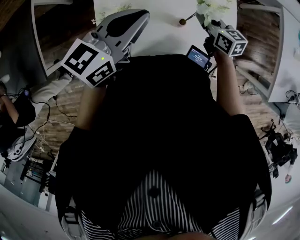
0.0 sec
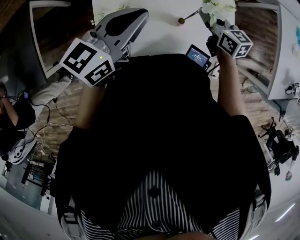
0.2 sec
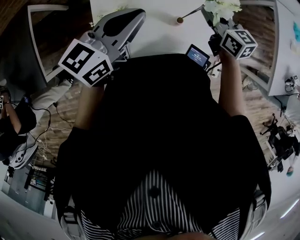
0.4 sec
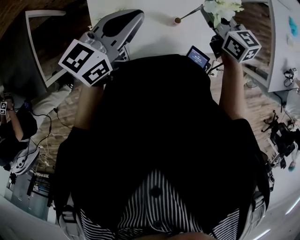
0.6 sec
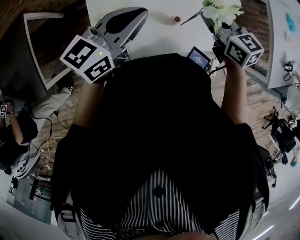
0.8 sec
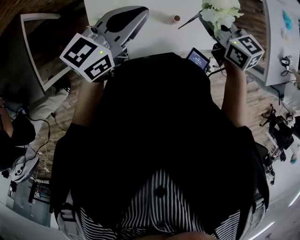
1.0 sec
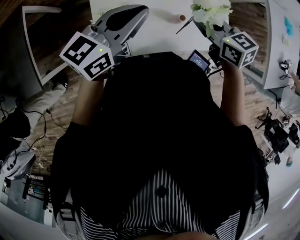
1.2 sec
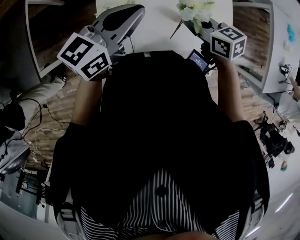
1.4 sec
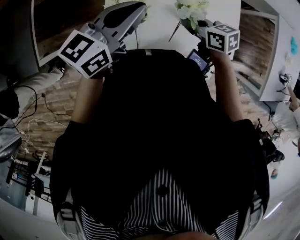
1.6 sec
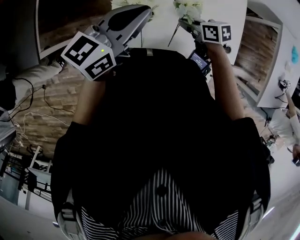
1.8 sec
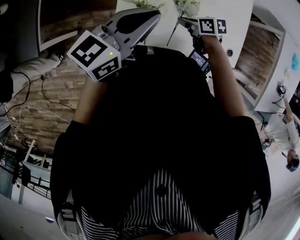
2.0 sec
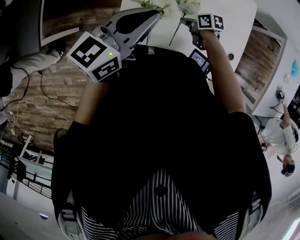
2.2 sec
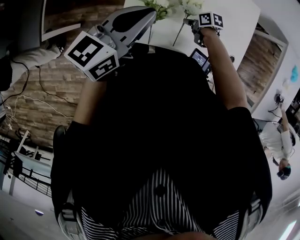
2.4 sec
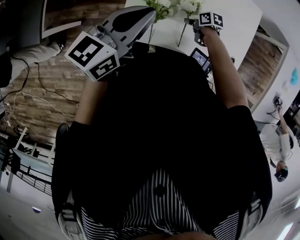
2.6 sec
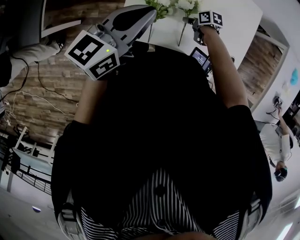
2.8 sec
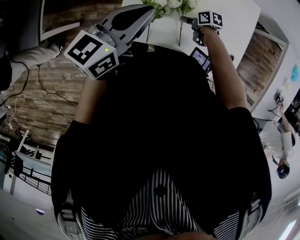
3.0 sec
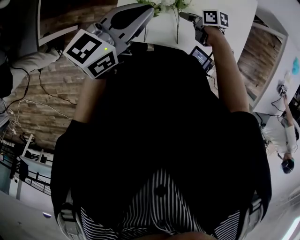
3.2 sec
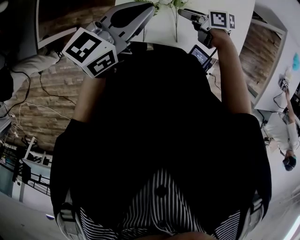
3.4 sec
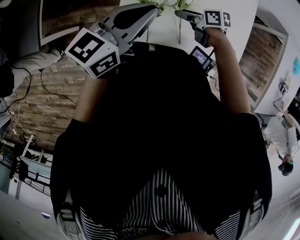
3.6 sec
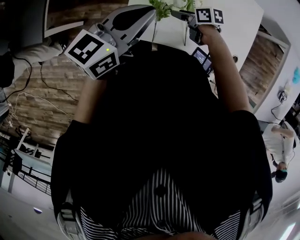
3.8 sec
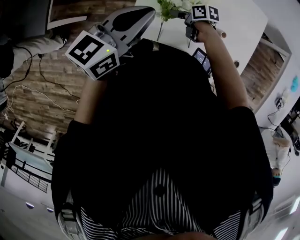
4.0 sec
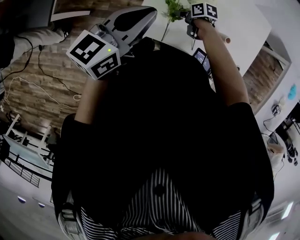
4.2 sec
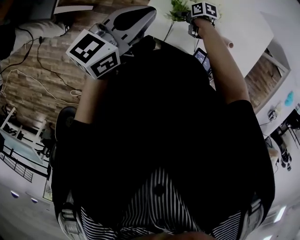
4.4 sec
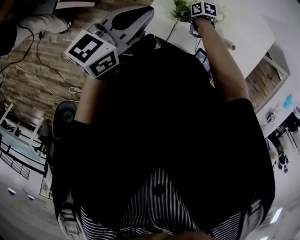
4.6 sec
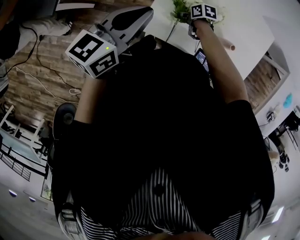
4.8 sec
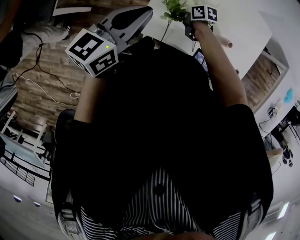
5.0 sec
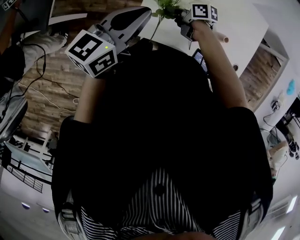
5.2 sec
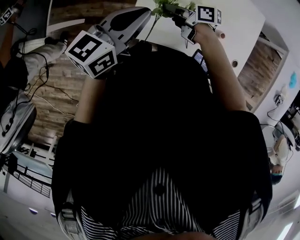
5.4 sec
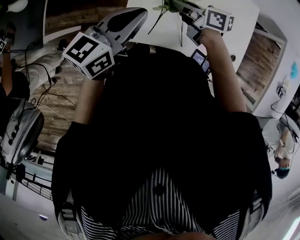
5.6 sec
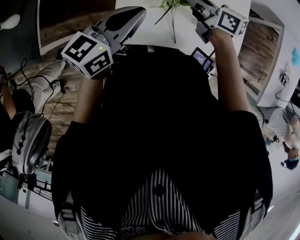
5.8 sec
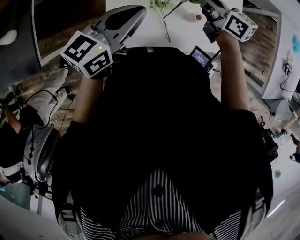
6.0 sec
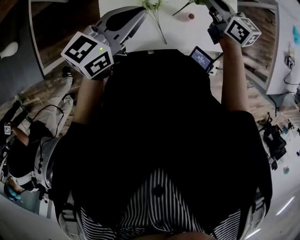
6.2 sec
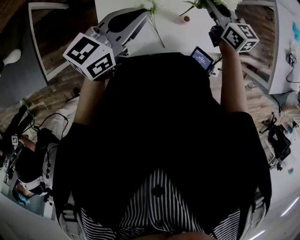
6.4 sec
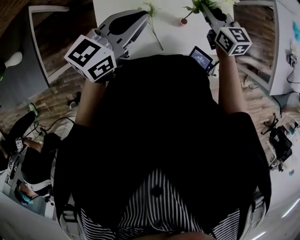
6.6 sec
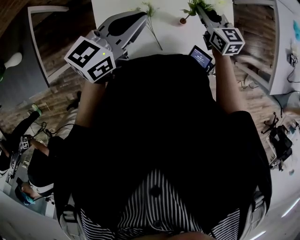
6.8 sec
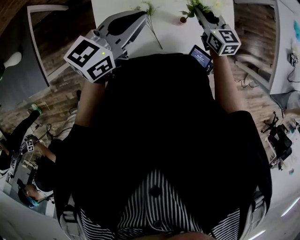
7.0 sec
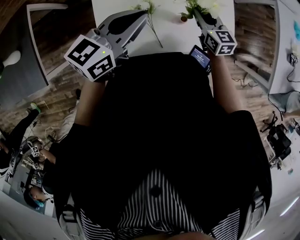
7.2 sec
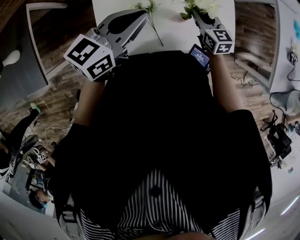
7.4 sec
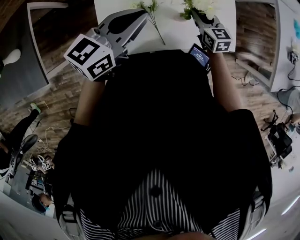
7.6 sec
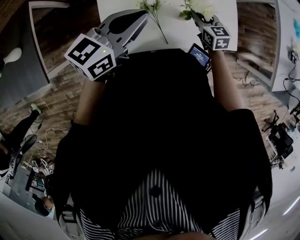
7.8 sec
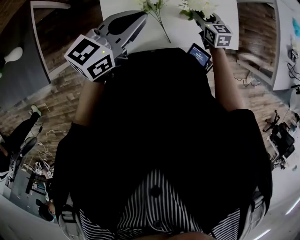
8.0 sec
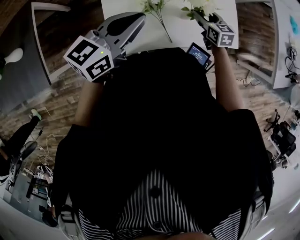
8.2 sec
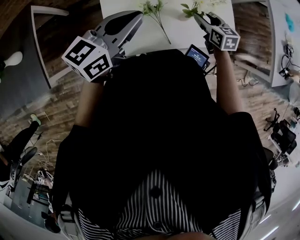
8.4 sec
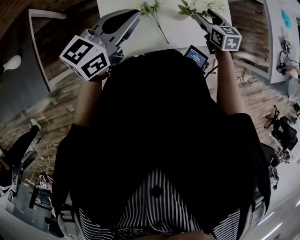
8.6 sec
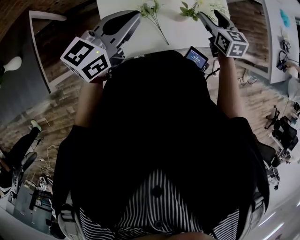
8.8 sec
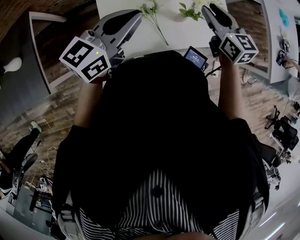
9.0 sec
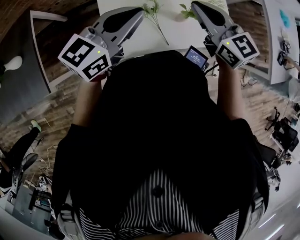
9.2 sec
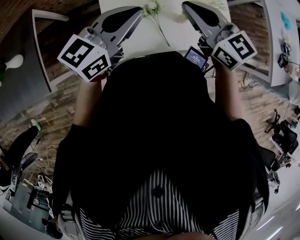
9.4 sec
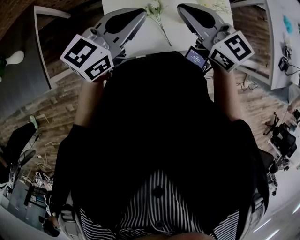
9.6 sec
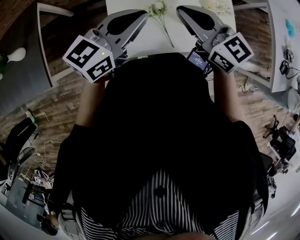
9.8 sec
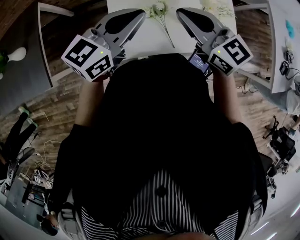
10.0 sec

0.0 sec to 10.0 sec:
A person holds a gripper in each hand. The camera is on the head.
0.0 sec to 1.4 sec: The left gripper is displaced to the left by some 10 cm. Meanwhile the right gripper is displaced to the left, backward and upward by some 15 cm.
1.4 sec to 2.8 sec: The right gripper goes about 25 cm downward, and changes its angle by some 40 degrees. The left gripper shifts by approximately 10 cm.
2.8 sec to 4.2 sec: The left gripper changes place by about 5 cm. Meanwhile the right gripper reaches about 15 cm upward, then returns, and opens up.
4.2 sec to 5.8 sec: The left gripper shifts by some 10 cm. Meanwhile the right gripper moves upward, some 25 cm, tips its fingers upward by roughly 30 degrees, and closes.
5.8 sec to 7.2 sec: The left gripper goes some 10 cm to the right, while the right gripper shifts roughly 15 cm to the right, and rotates roughly 40 degrees.
7.2 sec to 8.6 sec: The right gripper opens up.
8.6 sec to 10.0 sec: The right gripper goes roughly 25 cm upward, to the left and backward, swivels about 40 degrees, and closes its fingers.

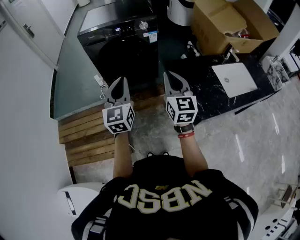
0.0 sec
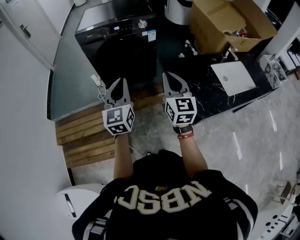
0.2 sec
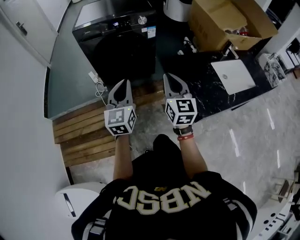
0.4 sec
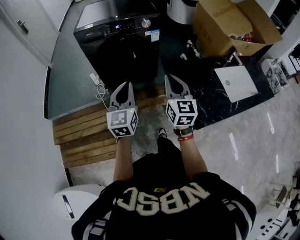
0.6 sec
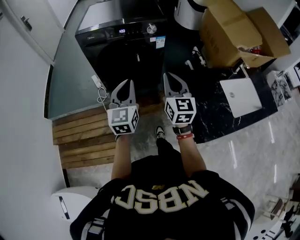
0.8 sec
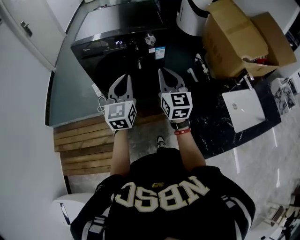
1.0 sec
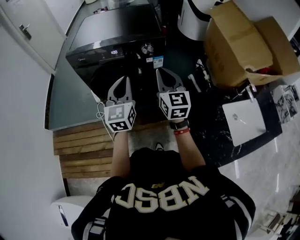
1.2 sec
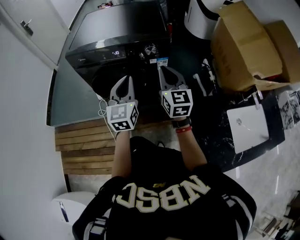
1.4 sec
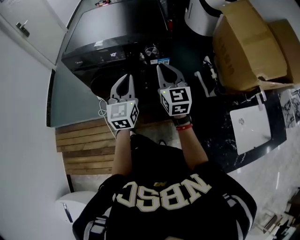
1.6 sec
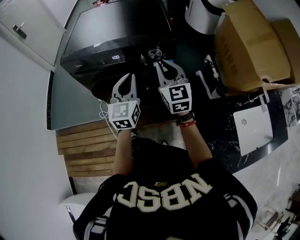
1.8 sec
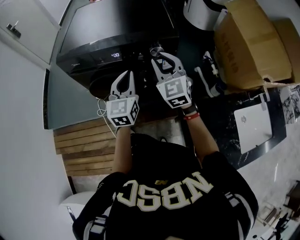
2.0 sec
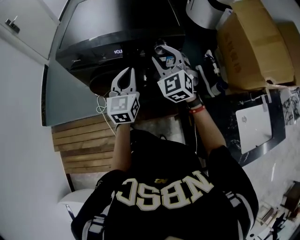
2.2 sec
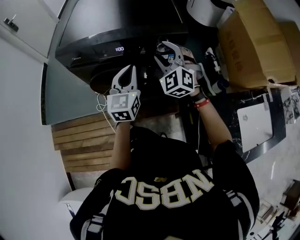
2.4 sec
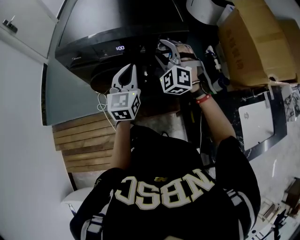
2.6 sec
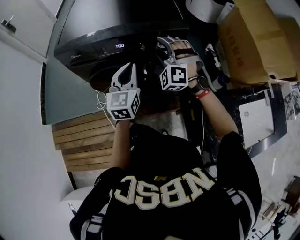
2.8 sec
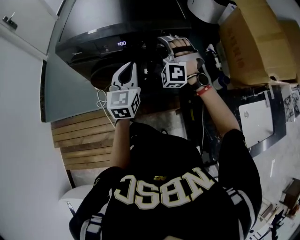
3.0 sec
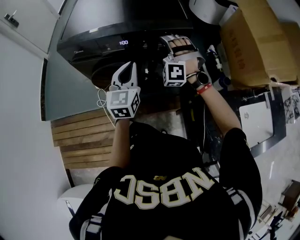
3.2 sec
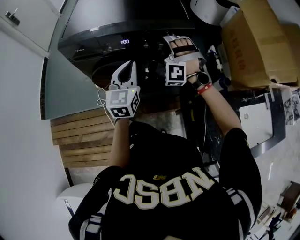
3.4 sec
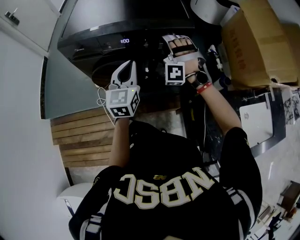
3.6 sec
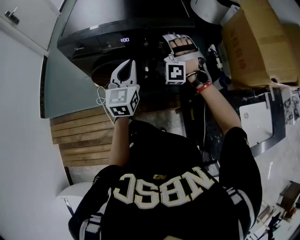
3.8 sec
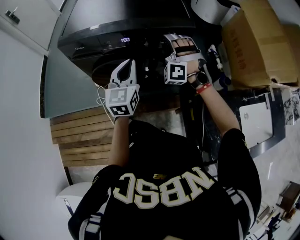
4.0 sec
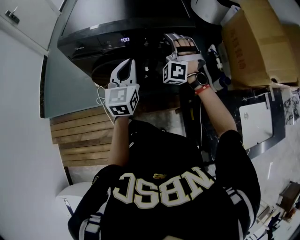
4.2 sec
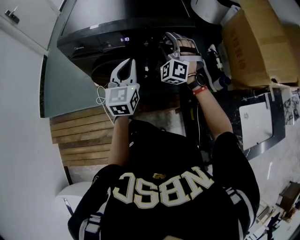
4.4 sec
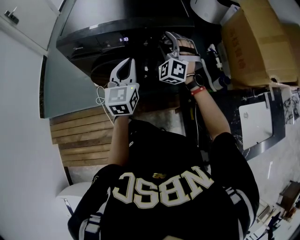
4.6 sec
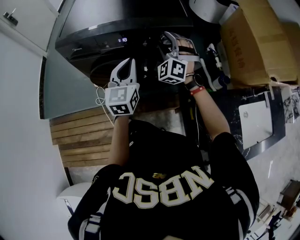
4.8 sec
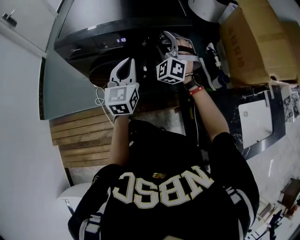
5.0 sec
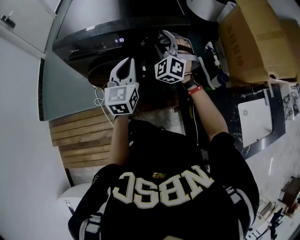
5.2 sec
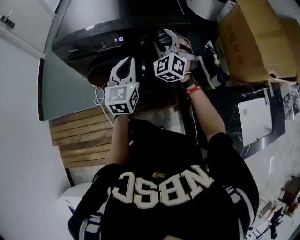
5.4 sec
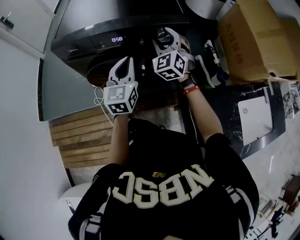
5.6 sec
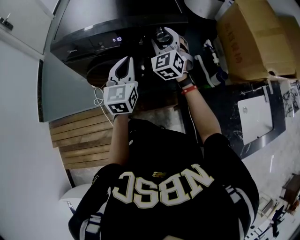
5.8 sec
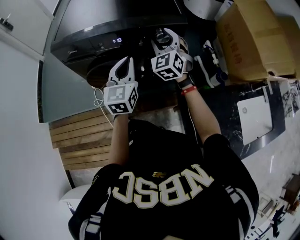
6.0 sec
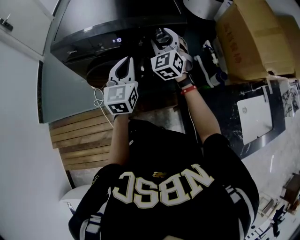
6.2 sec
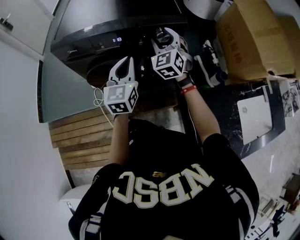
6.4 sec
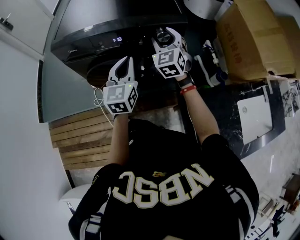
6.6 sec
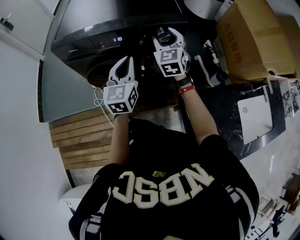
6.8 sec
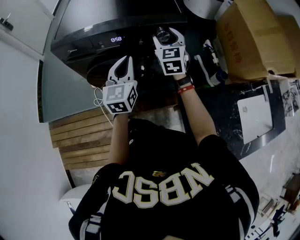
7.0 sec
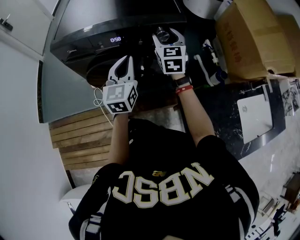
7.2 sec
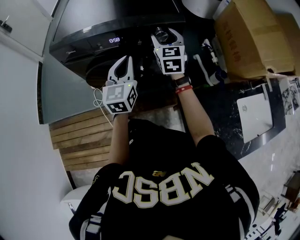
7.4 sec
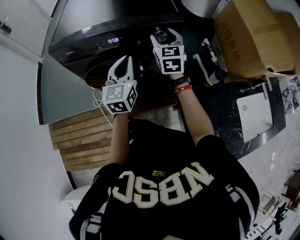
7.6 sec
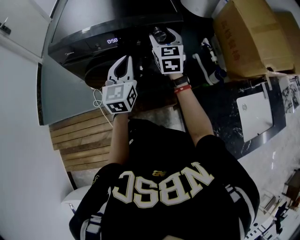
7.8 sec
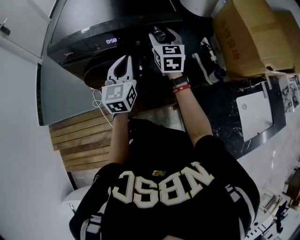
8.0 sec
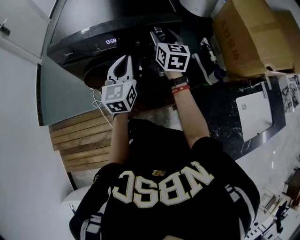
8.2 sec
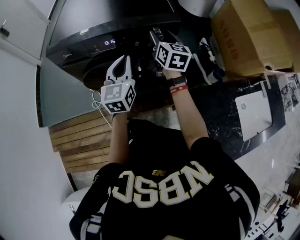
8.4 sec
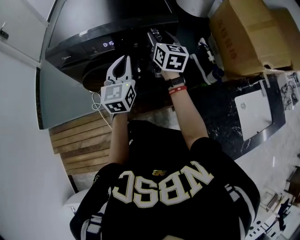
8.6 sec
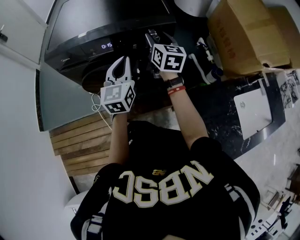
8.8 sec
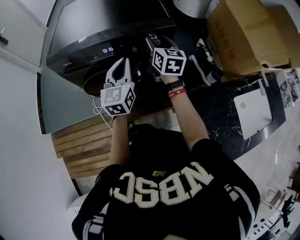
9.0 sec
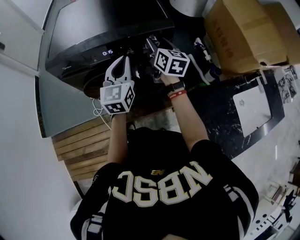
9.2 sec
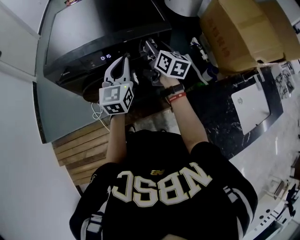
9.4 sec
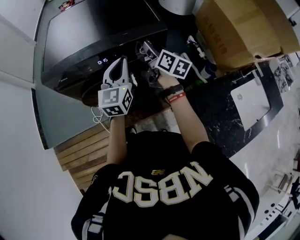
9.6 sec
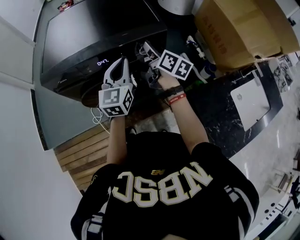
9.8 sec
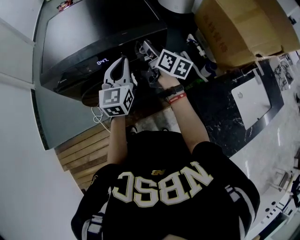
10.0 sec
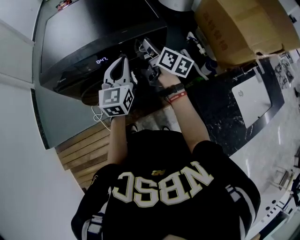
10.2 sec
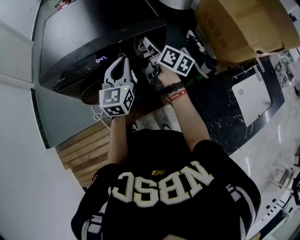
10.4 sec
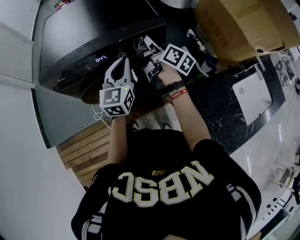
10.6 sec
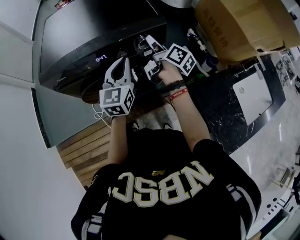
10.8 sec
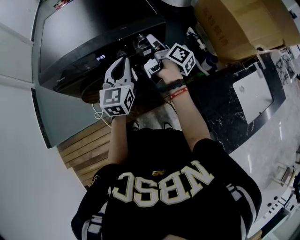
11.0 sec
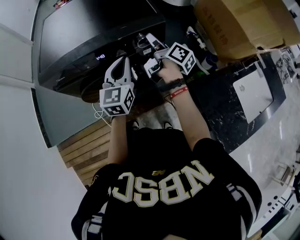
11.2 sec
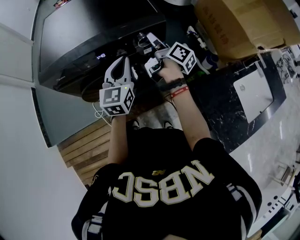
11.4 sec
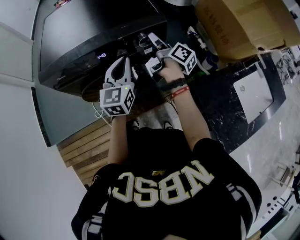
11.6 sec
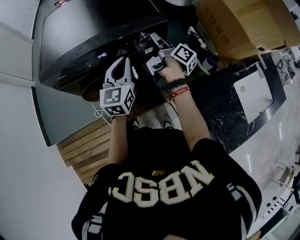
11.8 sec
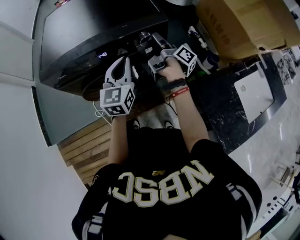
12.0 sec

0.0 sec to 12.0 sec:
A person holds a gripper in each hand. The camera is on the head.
0.0 sec to 1.6 sec: Both grippers move forward, roughly 40 cm.
1.6 sec to 3.0 sec: The left gripper goes about 10 cm forward and downward; the right gripper goes roughly 15 cm forward, downward and to the left, rolls counterclockwise, seen from behind, by about 80 degrees, and opens up.
3.0 sec to 4.4 sec: The grippers stay close to where they were, moving slightly.
4.4 sec to 6.0 sec: The right gripper turns by some 30 degrees.
6.0 sec to 7.6 sec: The right gripper changes its angle by some 30 degrees.
7.6 sec to 9.0 sec: The right gripper changes its angle by about 20 degrees.
9.0 sec to 10.4 sec: The right gripper changes its angle by about 40 degrees.
10.4 sec to 12.0 sec: The right gripper twists approximately 40 degrees clockwise, seen from behind.

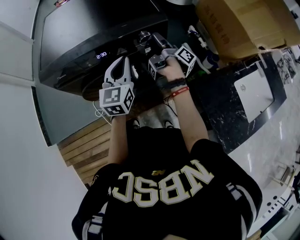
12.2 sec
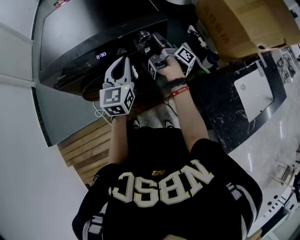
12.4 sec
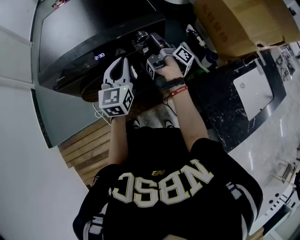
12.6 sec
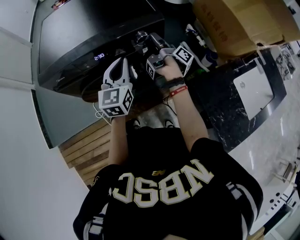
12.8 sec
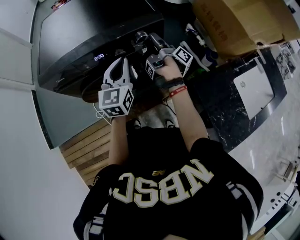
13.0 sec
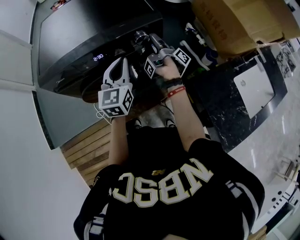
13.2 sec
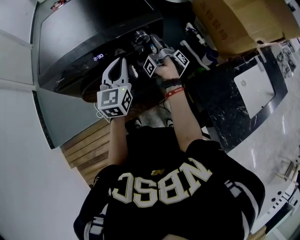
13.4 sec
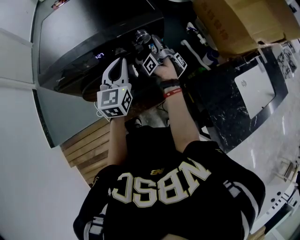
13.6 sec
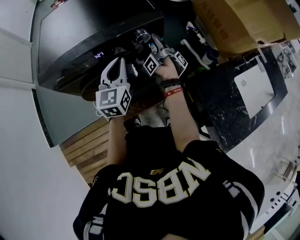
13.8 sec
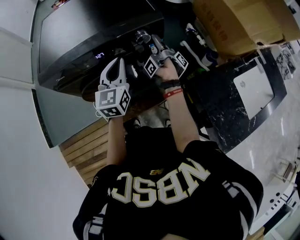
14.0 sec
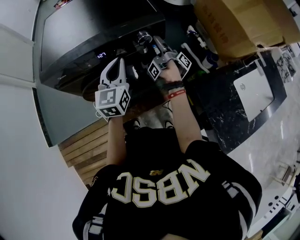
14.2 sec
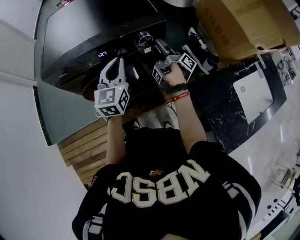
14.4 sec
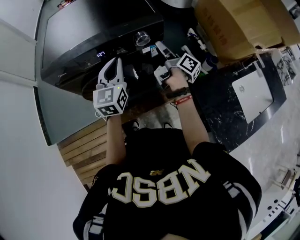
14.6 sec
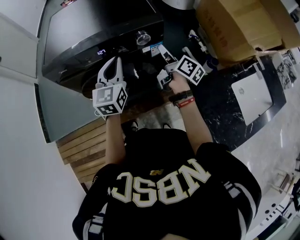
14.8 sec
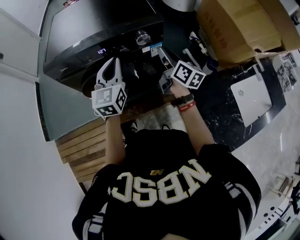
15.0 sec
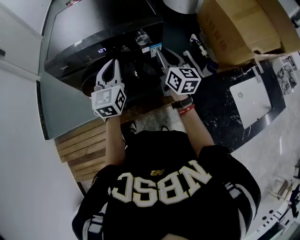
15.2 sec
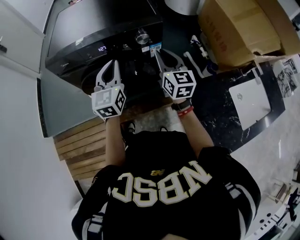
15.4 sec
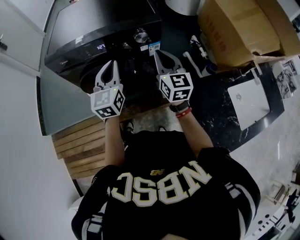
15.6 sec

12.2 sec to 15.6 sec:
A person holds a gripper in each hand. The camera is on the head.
12.2 sec to 13.8 sec: The right gripper changes its angle by some 30 degrees.
13.8 sec to 15.6 sec: The left gripper is displaced backward by approximately 5 cm, while the right gripper goes about 15 cm backward and upward, twists some 130 degrees counterclockwise, seen from behind, and closes its fingers.
